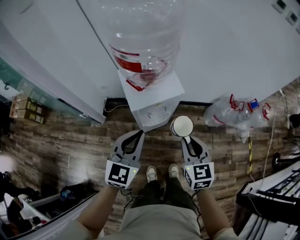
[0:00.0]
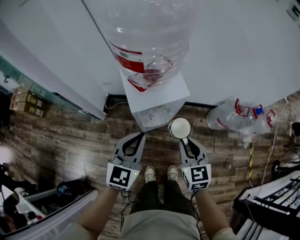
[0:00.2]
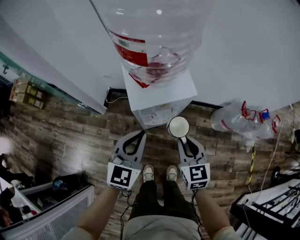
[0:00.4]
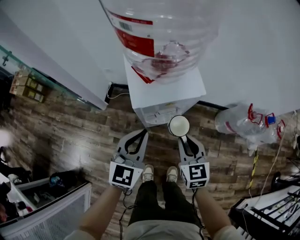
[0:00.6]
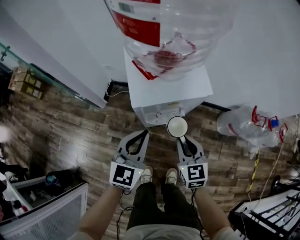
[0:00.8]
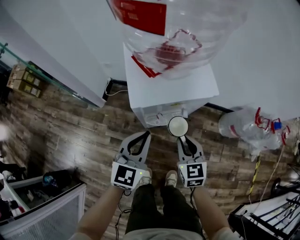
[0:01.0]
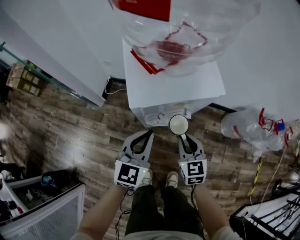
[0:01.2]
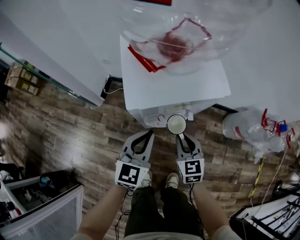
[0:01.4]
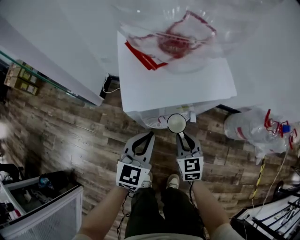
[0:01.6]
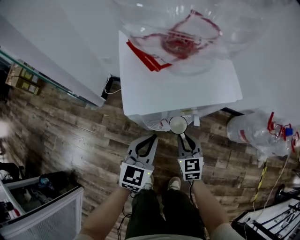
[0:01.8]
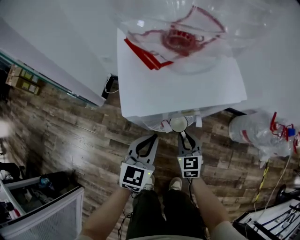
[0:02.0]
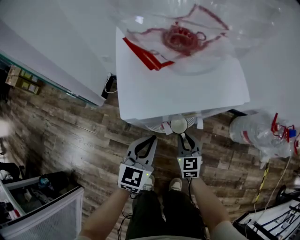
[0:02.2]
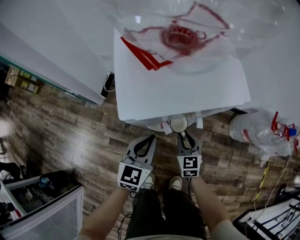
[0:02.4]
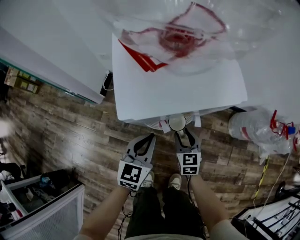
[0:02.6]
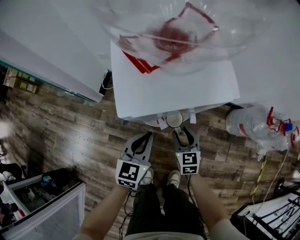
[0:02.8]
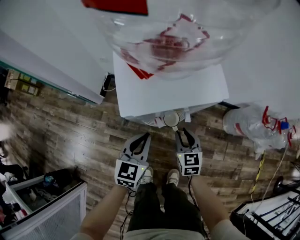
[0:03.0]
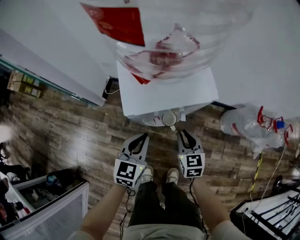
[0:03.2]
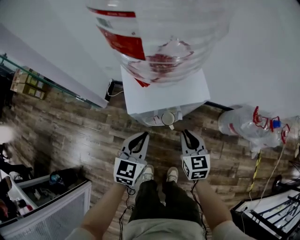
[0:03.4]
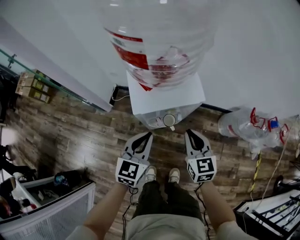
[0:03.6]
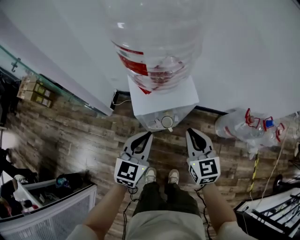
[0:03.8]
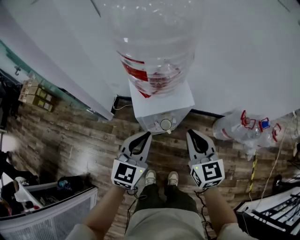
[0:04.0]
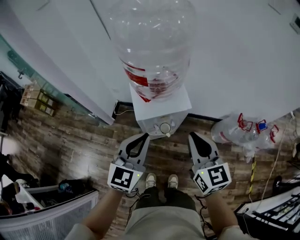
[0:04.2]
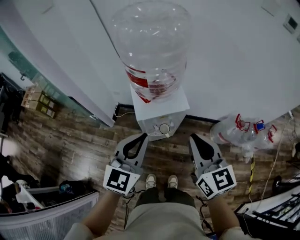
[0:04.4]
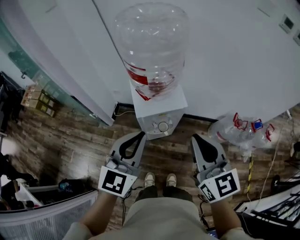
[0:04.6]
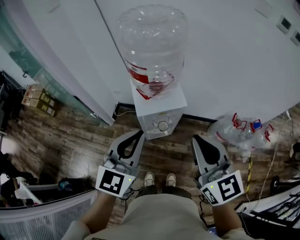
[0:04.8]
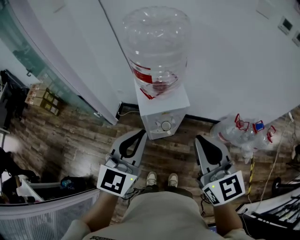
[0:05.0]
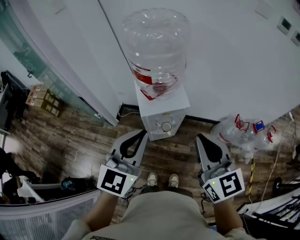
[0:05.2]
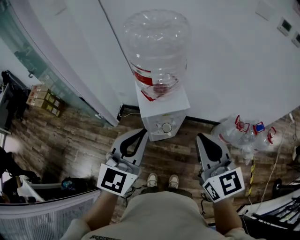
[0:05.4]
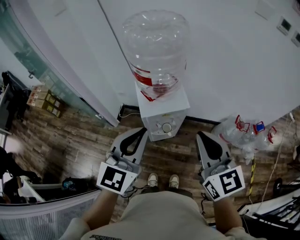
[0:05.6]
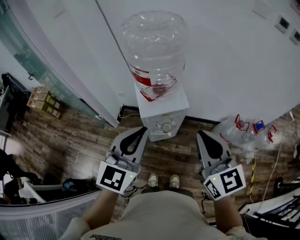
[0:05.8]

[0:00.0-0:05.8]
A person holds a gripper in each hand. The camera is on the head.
0:00.0 to 0:01.4: Both grippers travel together downward, some 30 cm.
0:01.4 to 0:02.8: Both grippers move downward, some 10 cm. The right gripper opens up.
0:02.8 to 0:04.4: Both grippers move upward, about 50 cm. The right gripper changes its angle by roughly 20 degrees, and closes its fingers; the left gripper swivels approximately 20 degrees.
0:04.4 to 0:05.8: The two grippers go some 10 cm upward.

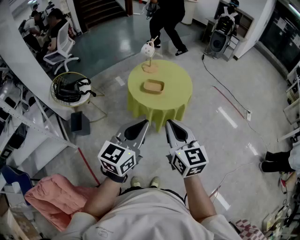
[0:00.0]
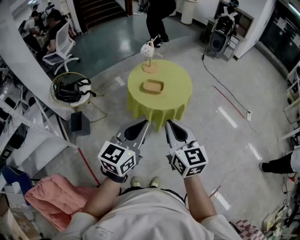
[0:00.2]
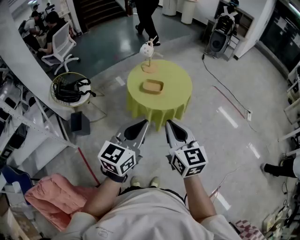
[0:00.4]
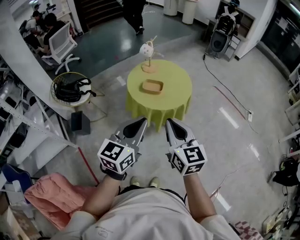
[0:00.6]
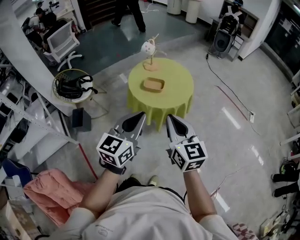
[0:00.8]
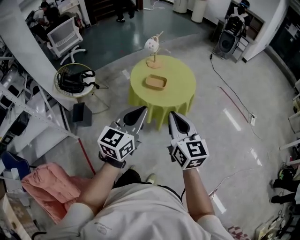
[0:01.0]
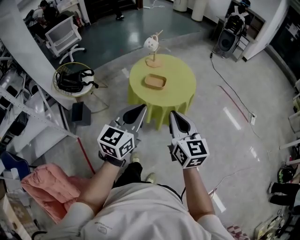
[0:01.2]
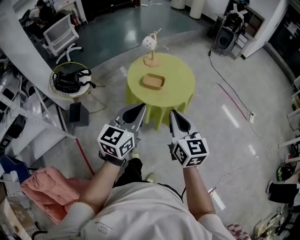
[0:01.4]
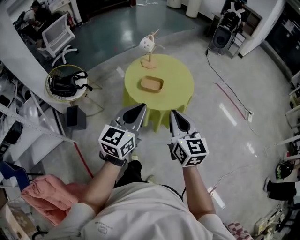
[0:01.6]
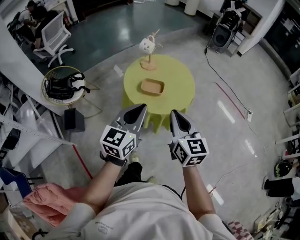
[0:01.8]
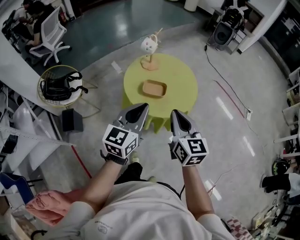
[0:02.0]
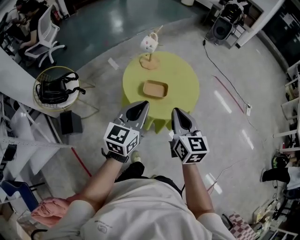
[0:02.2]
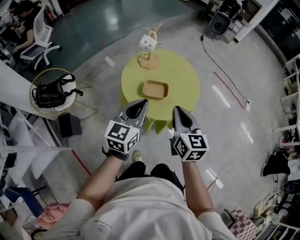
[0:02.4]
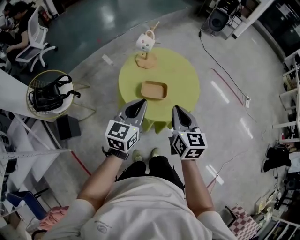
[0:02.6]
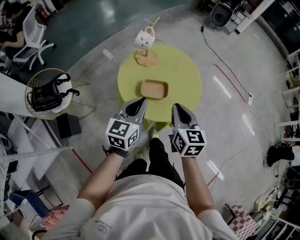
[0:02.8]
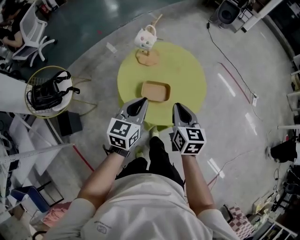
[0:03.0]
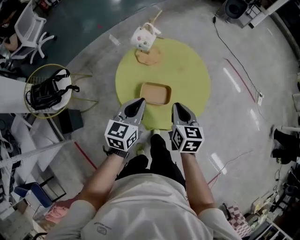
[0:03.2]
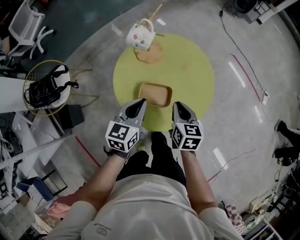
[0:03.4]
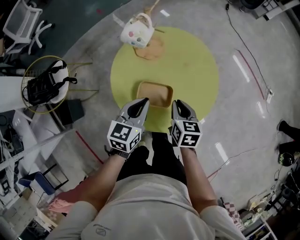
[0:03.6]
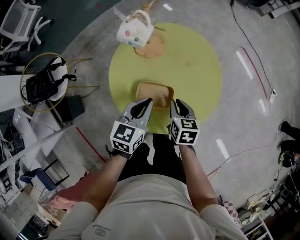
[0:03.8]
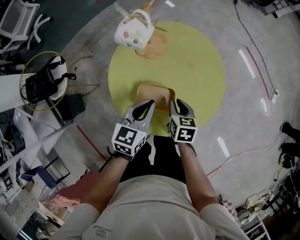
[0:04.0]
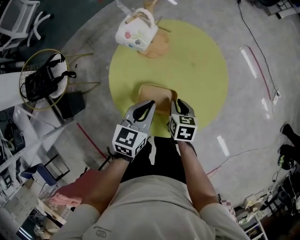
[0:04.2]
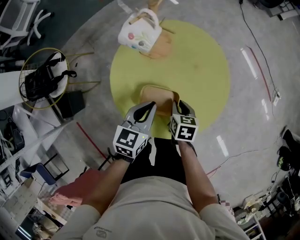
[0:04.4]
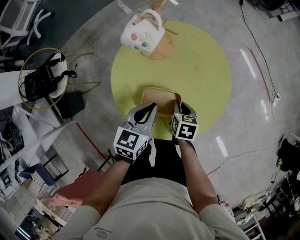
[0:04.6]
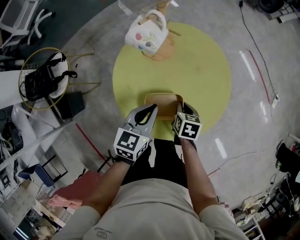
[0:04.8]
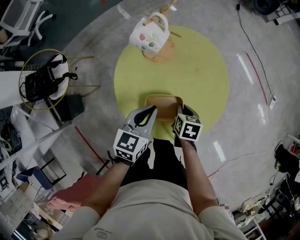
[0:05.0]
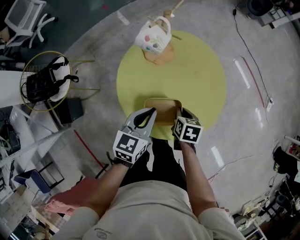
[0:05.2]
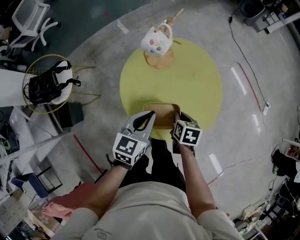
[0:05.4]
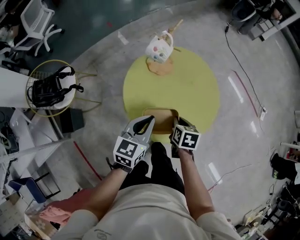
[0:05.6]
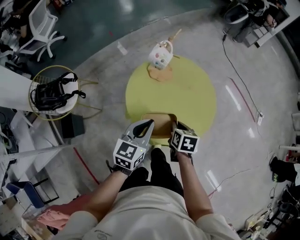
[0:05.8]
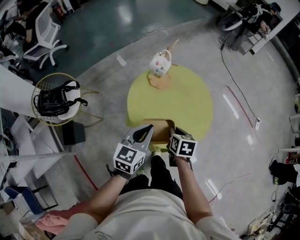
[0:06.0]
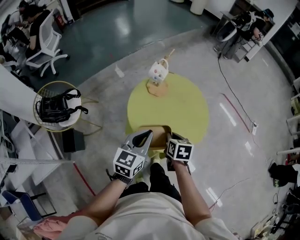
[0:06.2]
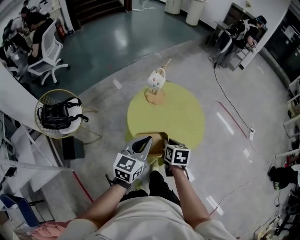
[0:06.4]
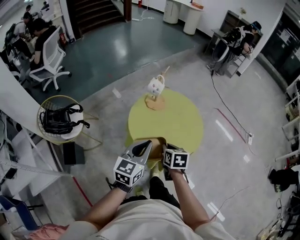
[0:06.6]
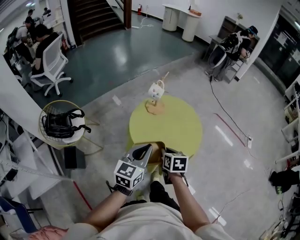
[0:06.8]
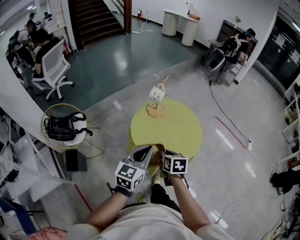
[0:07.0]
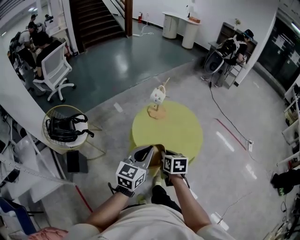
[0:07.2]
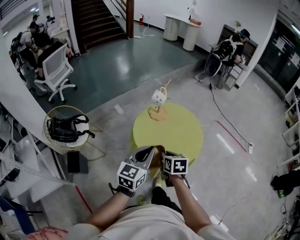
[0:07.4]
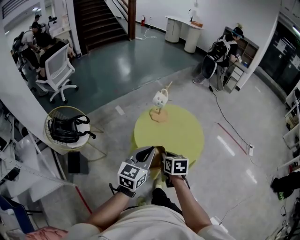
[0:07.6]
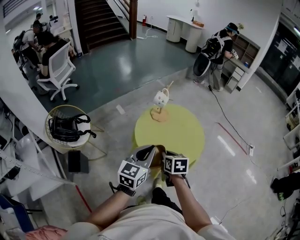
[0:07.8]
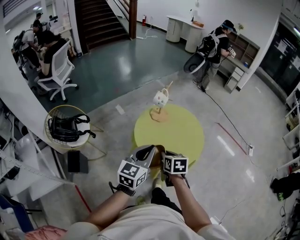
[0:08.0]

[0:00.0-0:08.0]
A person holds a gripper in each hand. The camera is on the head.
0:00.0 to 0:01.6: Both grippers move forward, some 10 cm.
0:01.6 to 0:03.2: Both grippers travel together forward and downward, about 35 cm. The right gripper changes its angle by roughly 30 degrees.
0:03.2 to 0:04.8: The right gripper goes about 20 cm downward, and swivels roughly 30 degrees; the left gripper moves downward and forward, roughly 10 cm.
0:04.8 to 0:06.4: The right gripper moves upward, backward and to the left, some 25 cm. Meanwhile the left gripper travels upward and backward by some 25 cm.
0:06.4 to 0:08.0: The right gripper goes approximately 10 cm upward and backward; the left gripper shifts about 5 cm upward.

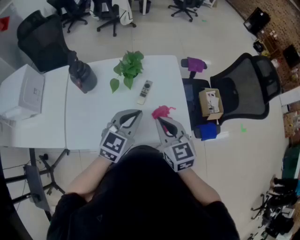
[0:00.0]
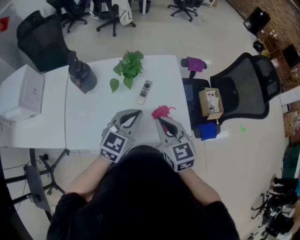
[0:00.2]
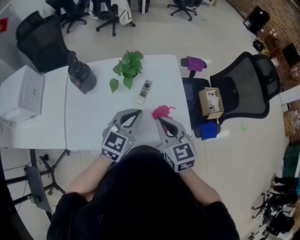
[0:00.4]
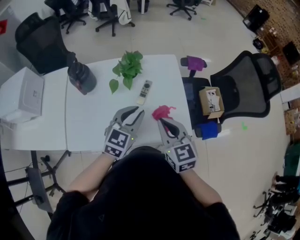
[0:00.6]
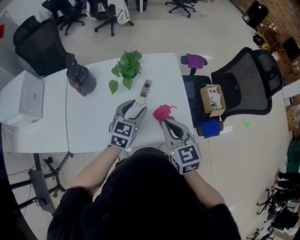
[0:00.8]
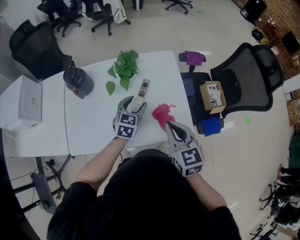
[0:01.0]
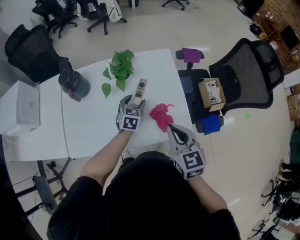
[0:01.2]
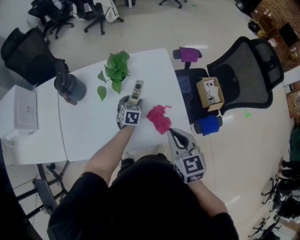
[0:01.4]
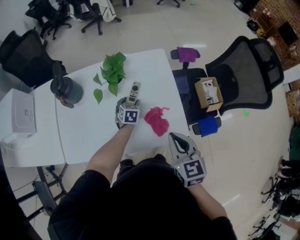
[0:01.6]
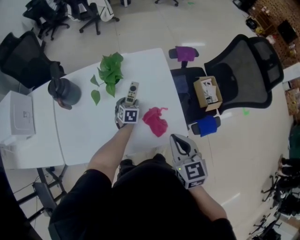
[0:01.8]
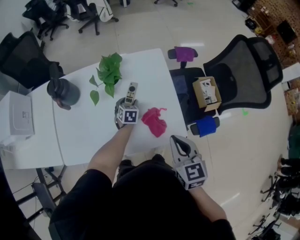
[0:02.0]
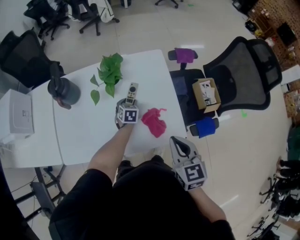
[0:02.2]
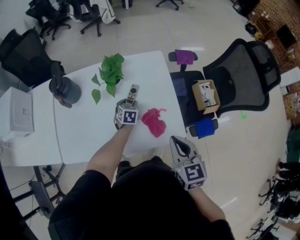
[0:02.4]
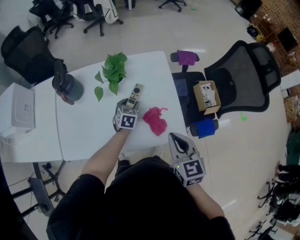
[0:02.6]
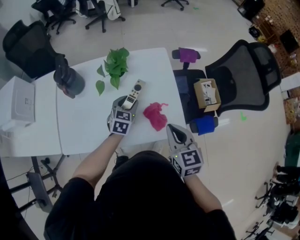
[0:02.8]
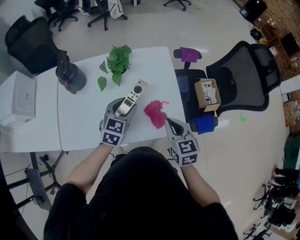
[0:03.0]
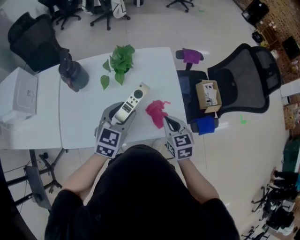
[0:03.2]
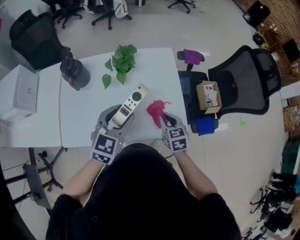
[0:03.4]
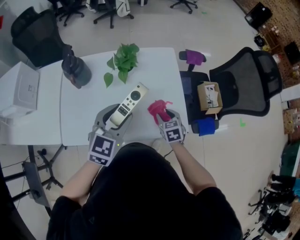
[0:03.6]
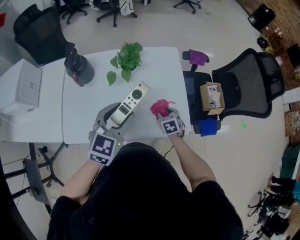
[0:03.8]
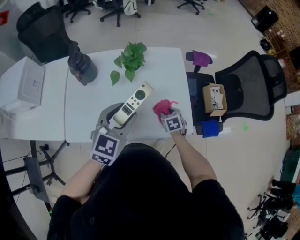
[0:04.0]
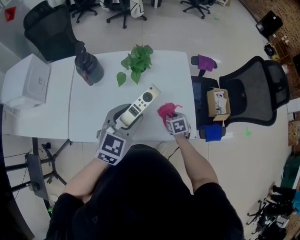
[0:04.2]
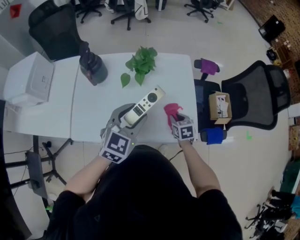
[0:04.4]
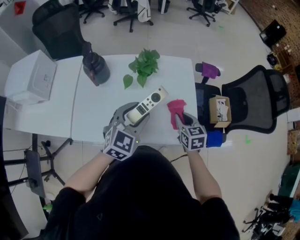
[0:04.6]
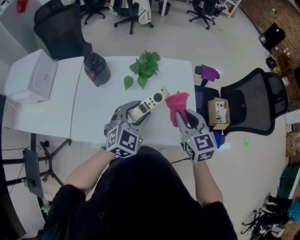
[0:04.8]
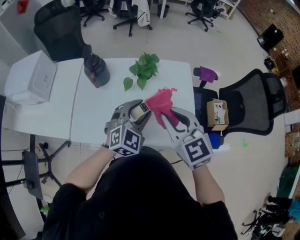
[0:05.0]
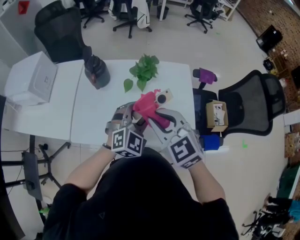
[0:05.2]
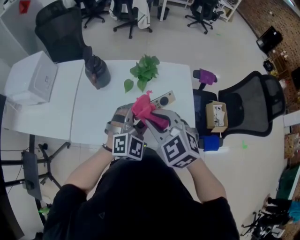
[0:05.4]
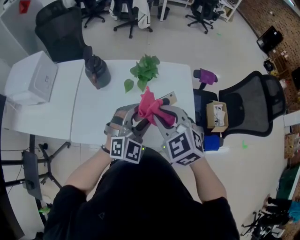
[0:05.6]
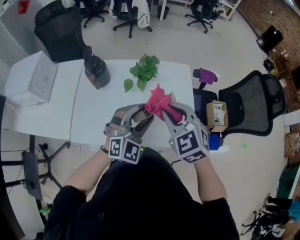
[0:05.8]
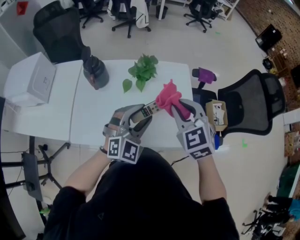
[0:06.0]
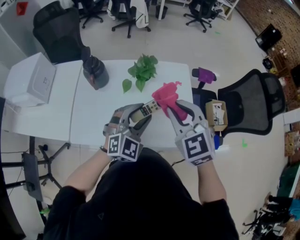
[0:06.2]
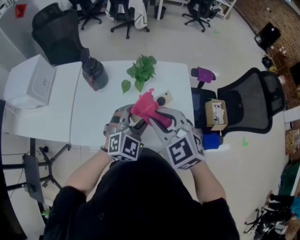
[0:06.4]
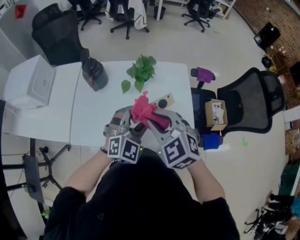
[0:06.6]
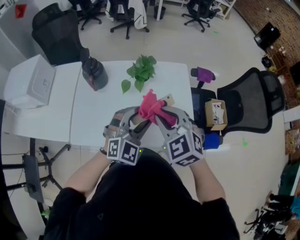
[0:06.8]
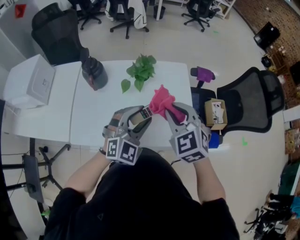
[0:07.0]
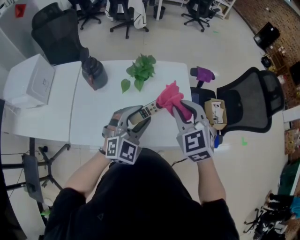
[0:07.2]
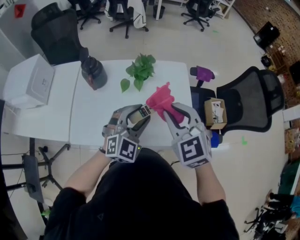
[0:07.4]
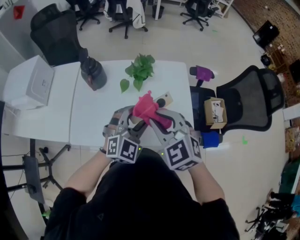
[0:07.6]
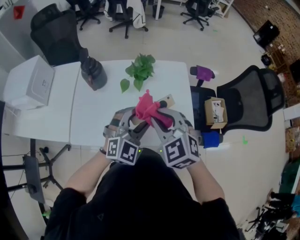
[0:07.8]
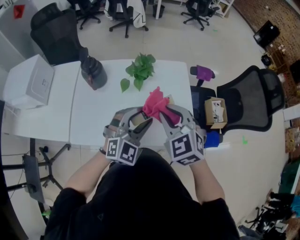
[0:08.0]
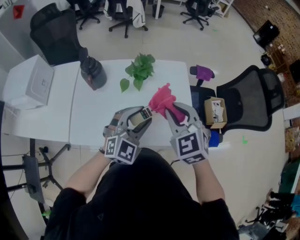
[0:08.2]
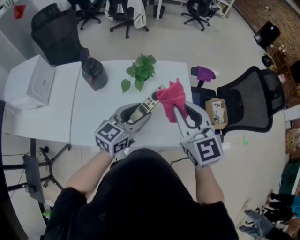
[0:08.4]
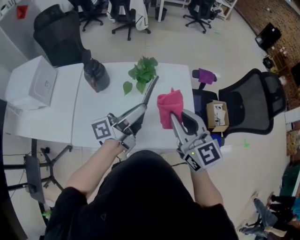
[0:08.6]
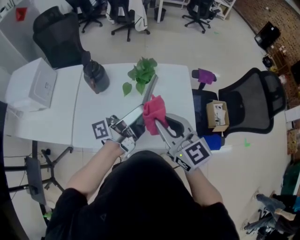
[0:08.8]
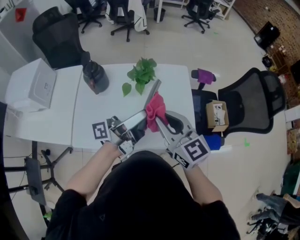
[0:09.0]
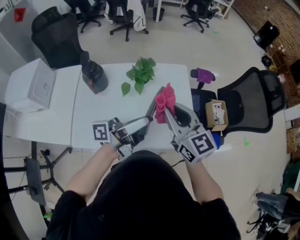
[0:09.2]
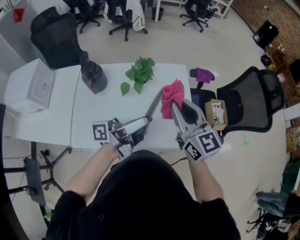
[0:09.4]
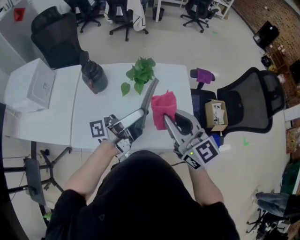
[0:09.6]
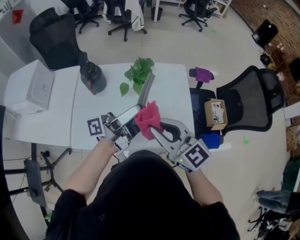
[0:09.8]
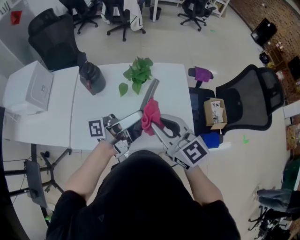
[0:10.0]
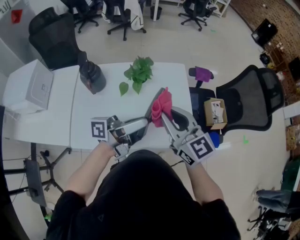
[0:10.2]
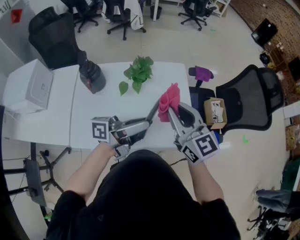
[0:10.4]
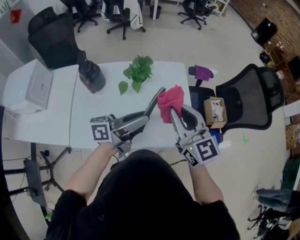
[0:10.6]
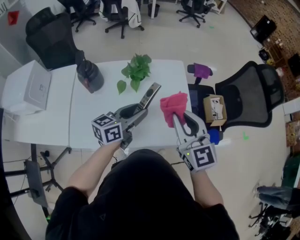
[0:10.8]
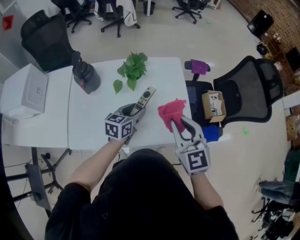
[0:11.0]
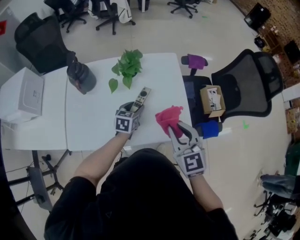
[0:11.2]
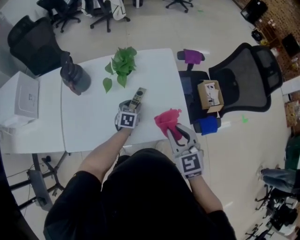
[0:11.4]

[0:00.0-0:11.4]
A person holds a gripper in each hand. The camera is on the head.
0:00.0 to 0:01.4: The left gripper shifts roughly 30 cm downward and forward, changes its angle by roughly 40 degrees, and opens, while the right gripper shifts some 10 cm to the right.
0:01.4 to 0:02.8: The left gripper is displaced upward by approximately 10 cm.
0:02.8 to 0:04.2: The left gripper goes roughly 20 cm upward and backward. The right gripper is displaced downward by about 25 cm, points its fingers some 30 degrees further downward, and opens.
0:04.2 to 0:05.6: The left gripper swivels roughly 30 degrees; the right gripper is displaced upward and to the left by approximately 35 cm, and rolls counterclockwise, seen from behind, by some 40 degrees.
0:05.6 to 0:07.2: The right gripper goes left and right, some 10 cm each way, reversing 2 times.
0:07.2 to 0:08.6: The right gripper turns by roughly 40 degrees. The left gripper moves about 5 cm, and twists roughly 100 degrees counterclockwise, seen from behind.
0:08.6 to 0:10.0: The right gripper ends up some 5 cm from where it was. The left gripper swivels approximately 20 degrees.
0:10.0 to 0:11.4: The left gripper shifts about 30 cm downward, and angles its fingers downward, by some 70 degrees; the right gripper shifts about 15 cm to the right and downward, and rotates approximately 30 degrees.
